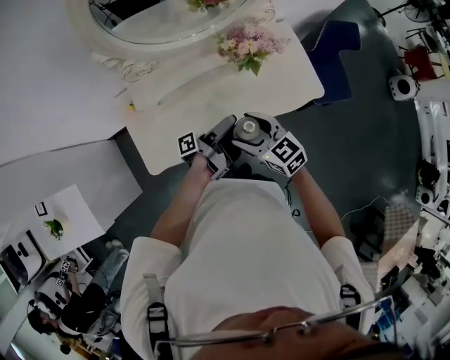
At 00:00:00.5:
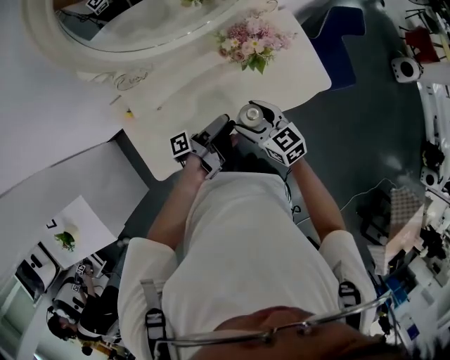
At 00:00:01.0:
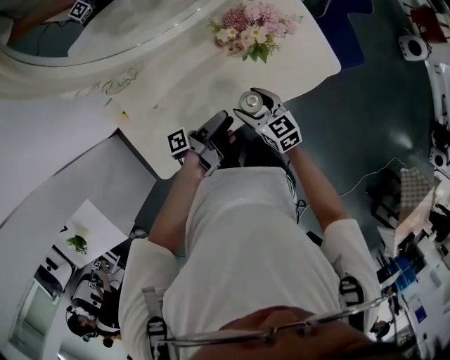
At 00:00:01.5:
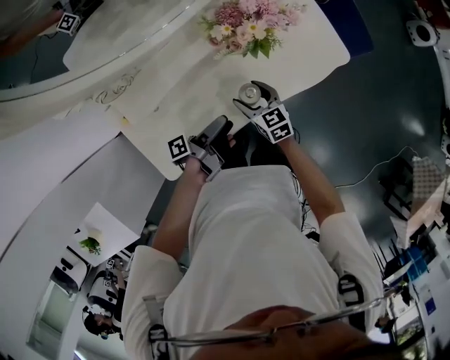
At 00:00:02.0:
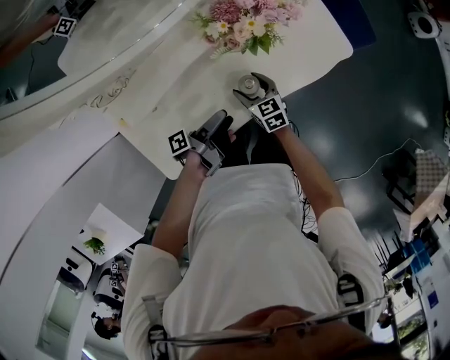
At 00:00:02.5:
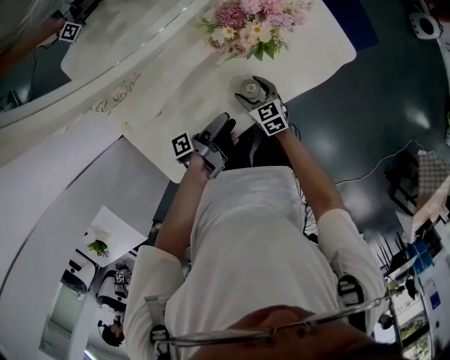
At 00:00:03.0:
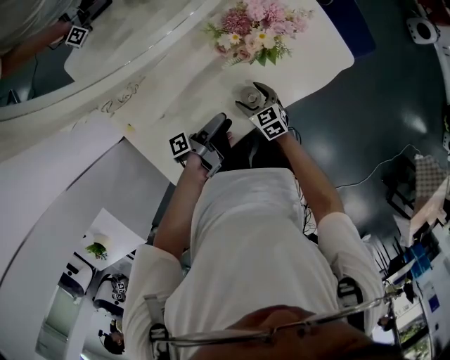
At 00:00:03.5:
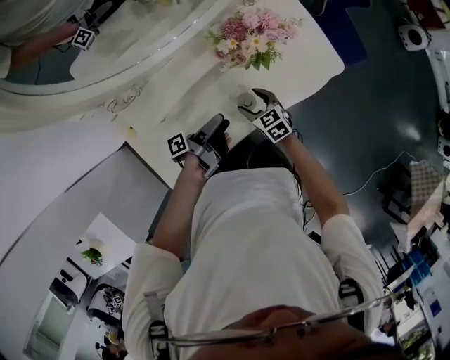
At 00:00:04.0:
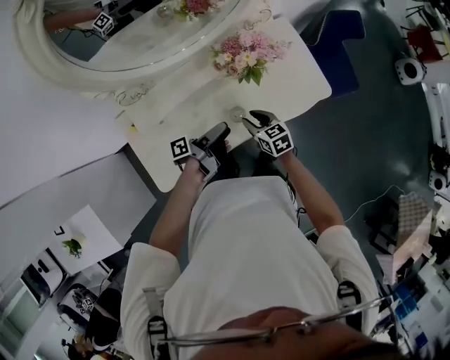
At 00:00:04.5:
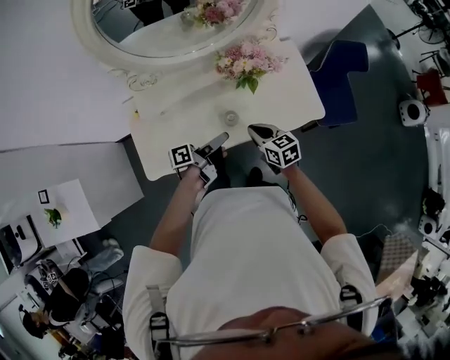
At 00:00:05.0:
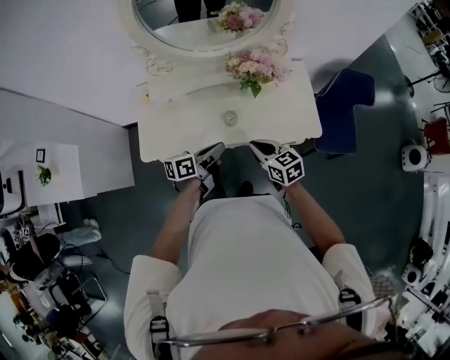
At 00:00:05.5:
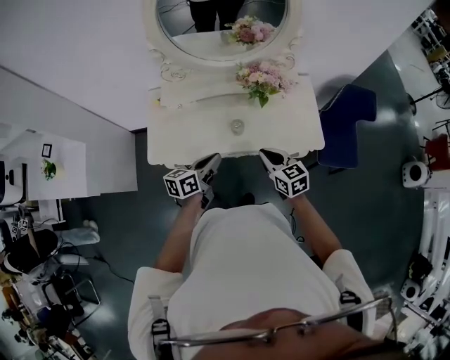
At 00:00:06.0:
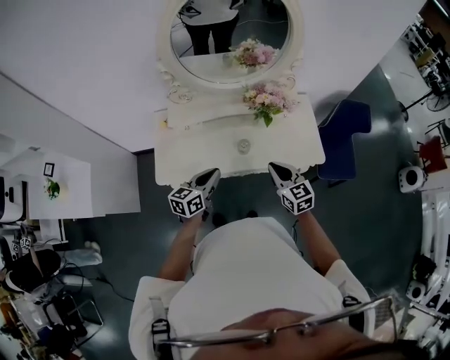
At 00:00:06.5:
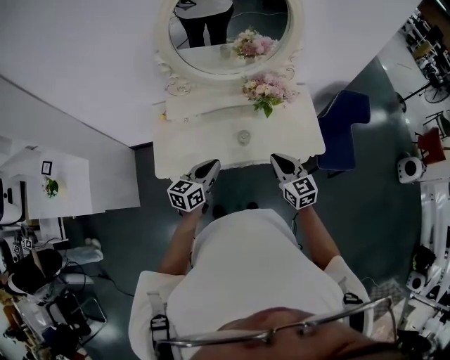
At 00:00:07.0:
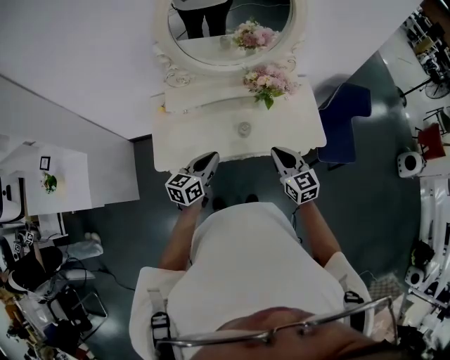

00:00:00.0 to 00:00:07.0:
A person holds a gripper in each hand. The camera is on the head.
00:00:00.0 to 00:00:02.0: The right gripper moves downward, about 30 cm, and turns by some 30 degrees.
00:00:03.5 to 00:00:05.0: The right gripper is displaced upward by about 20 cm, turns by about 30 degrees, and closes up.
00:00:05.0 to 00:00:07.0: The right gripper moves upward, about 5 cm, and swivels roughly 20 degrees.

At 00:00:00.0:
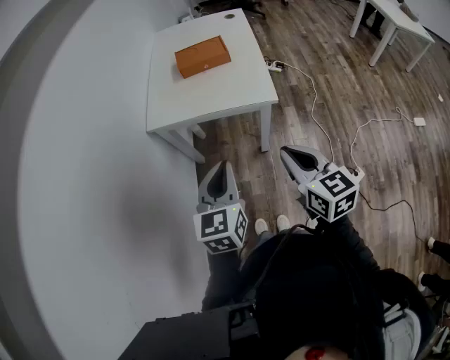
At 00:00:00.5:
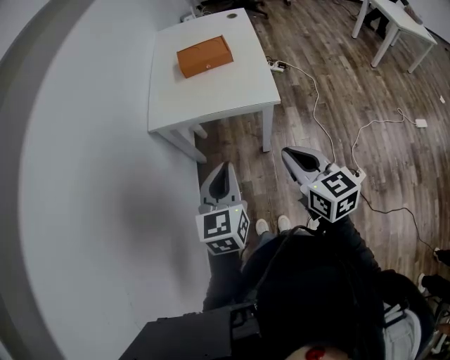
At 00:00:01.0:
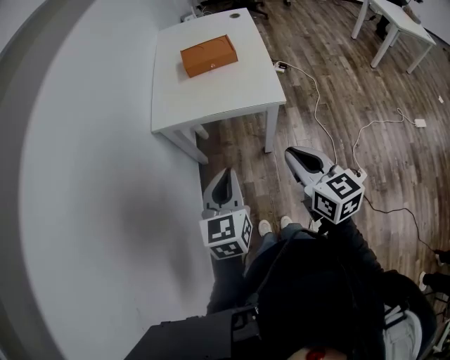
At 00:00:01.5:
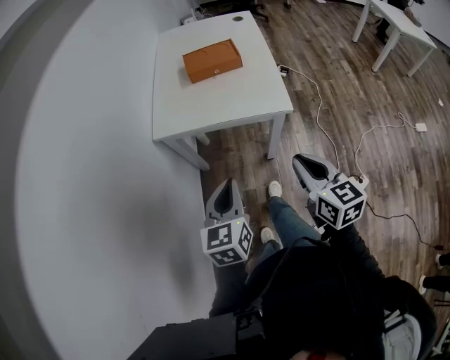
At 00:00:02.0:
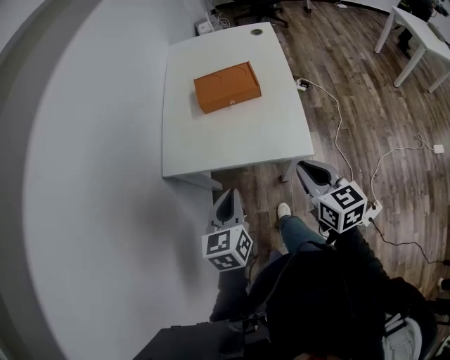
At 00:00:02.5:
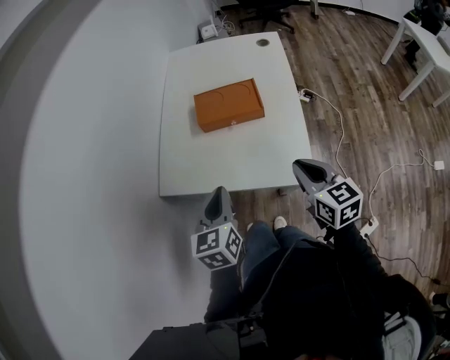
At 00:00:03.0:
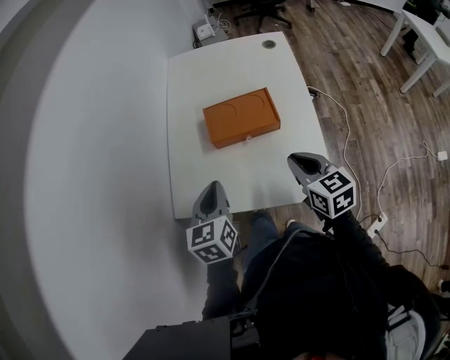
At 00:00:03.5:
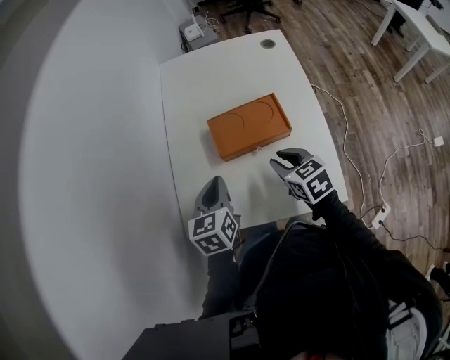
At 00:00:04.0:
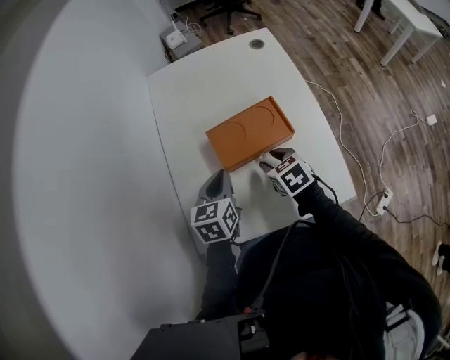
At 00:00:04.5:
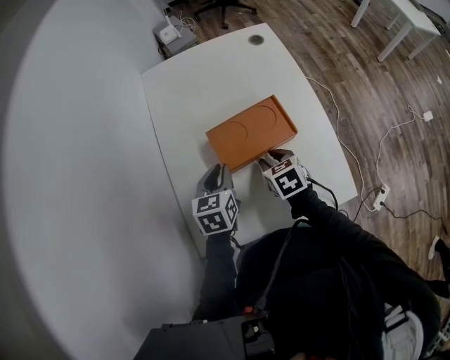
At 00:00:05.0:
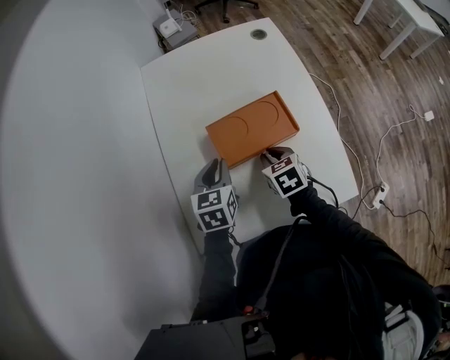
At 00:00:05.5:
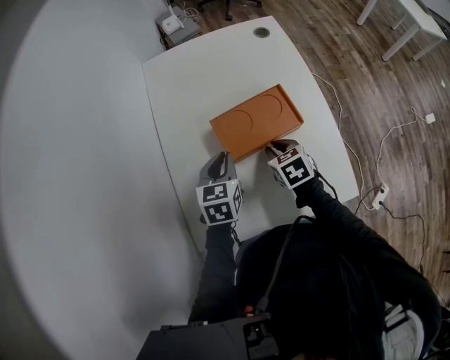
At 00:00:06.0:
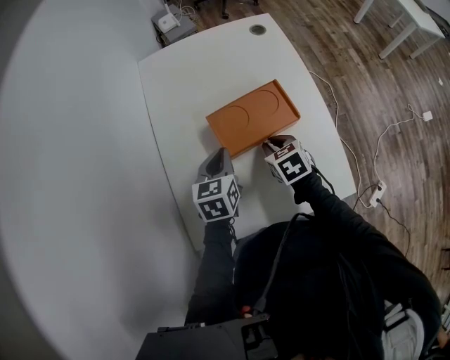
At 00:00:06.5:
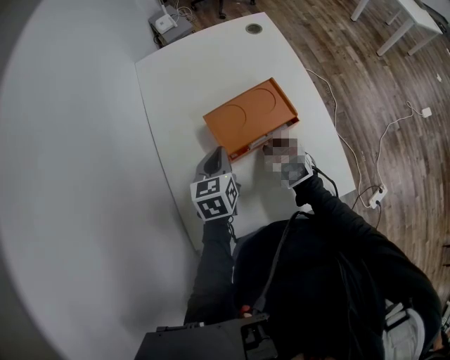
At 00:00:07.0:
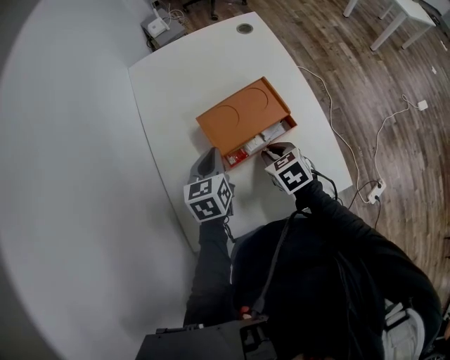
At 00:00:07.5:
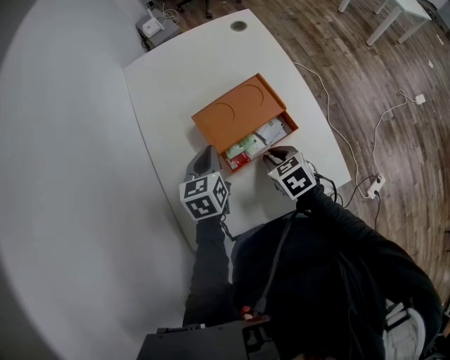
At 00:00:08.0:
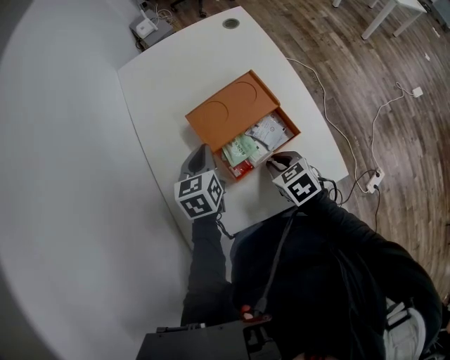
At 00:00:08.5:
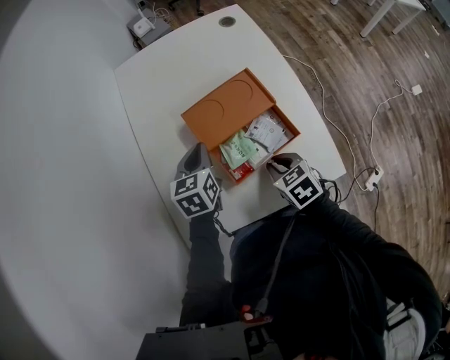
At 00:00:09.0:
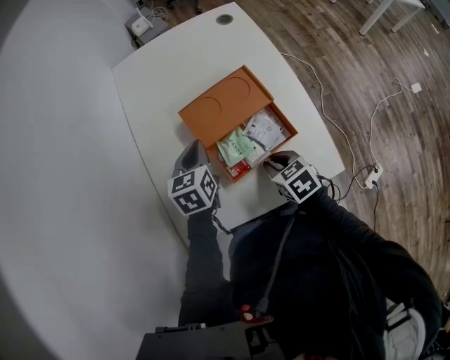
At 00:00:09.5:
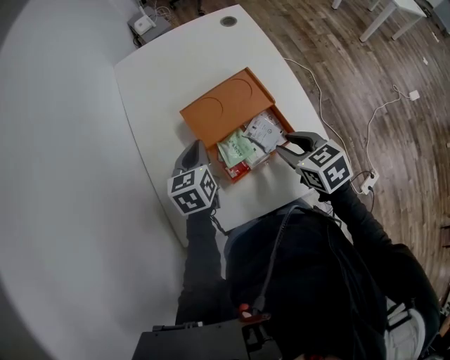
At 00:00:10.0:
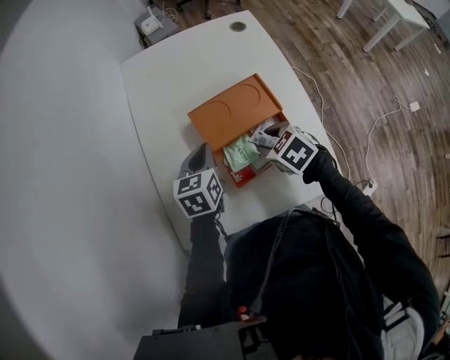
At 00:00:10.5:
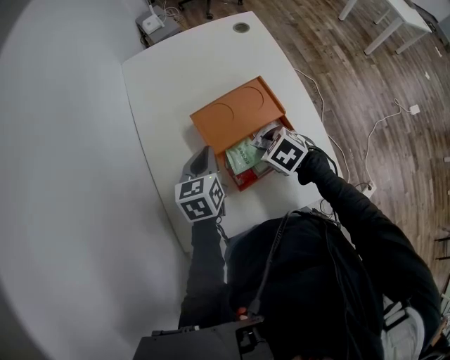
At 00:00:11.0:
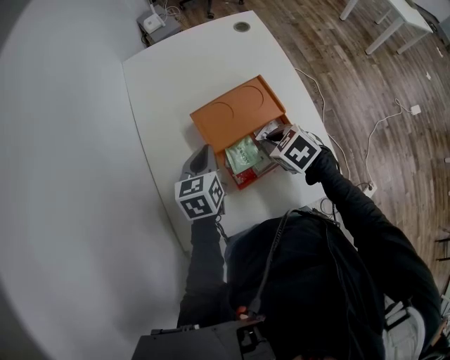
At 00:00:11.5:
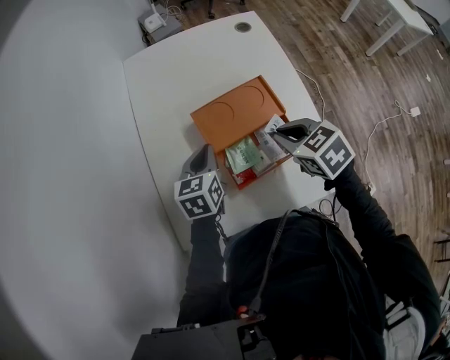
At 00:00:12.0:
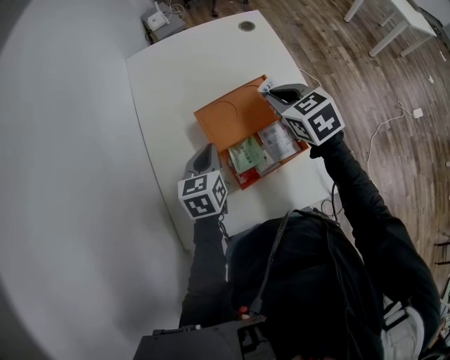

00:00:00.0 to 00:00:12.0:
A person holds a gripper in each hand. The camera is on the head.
00:00:00.0 to 00:00:02.0: Both grippers move forward, approximately 20 cm.
00:00:02.0 to 00:00:04.0: The right gripper travels forward and downward by roughly 40 cm, changes its angle by about 30 degrees, and opens, while the left gripper shifts some 40 cm forward.
00:00:04.0 to 00:00:06.0: The left gripper moves approximately 5 cm.
00:00:06.0 to 00:00:08.0: The right gripper heads backward, covering roughly 10 cm.
00:00:08.0 to 00:00:10.0: The right gripper is displaced forward by approximately 5 cm, goes upward and returns, about 10 cm each way, and opens.
00:00:10.0 to 00:00:12.0: The right gripper moves upward and forward, about 15 cm, swivels some 20 degrees, and closes its fingers.

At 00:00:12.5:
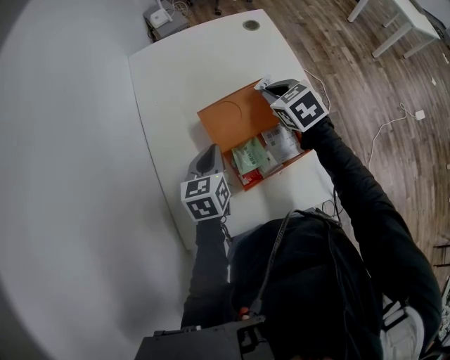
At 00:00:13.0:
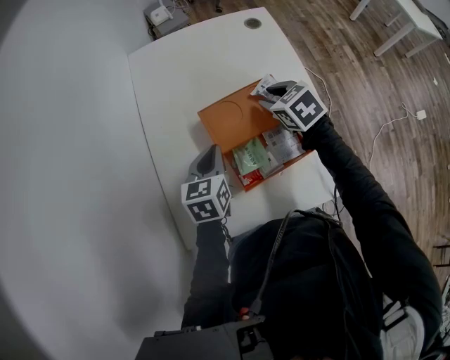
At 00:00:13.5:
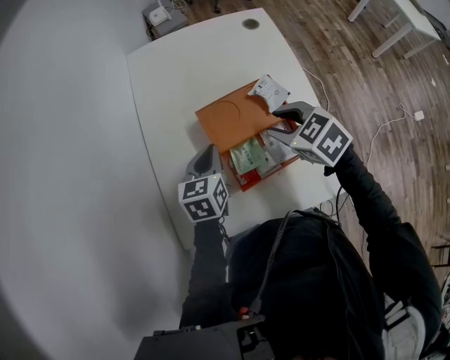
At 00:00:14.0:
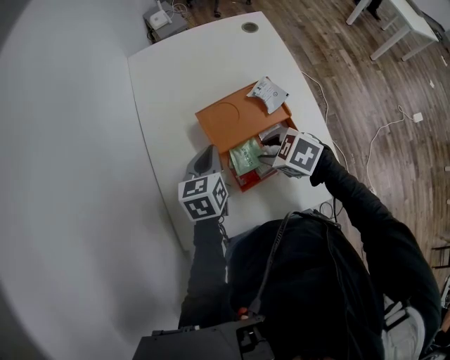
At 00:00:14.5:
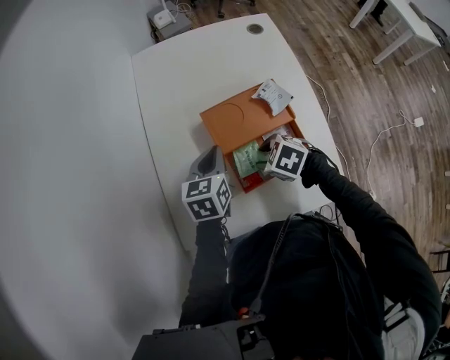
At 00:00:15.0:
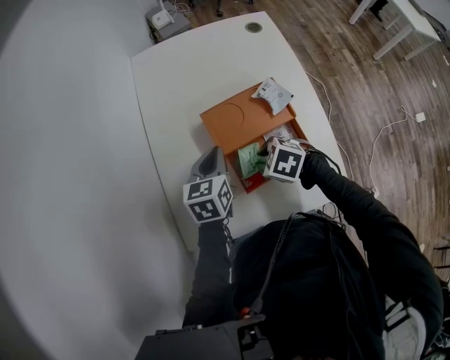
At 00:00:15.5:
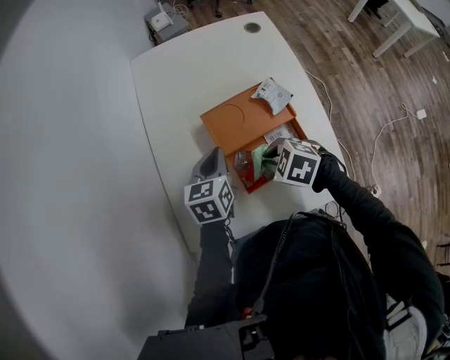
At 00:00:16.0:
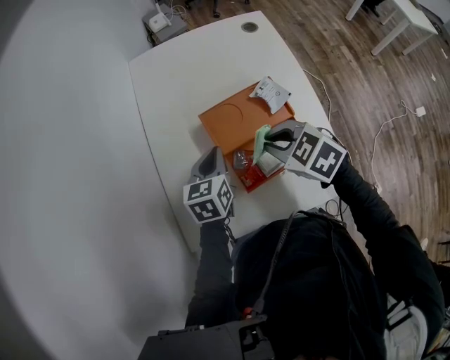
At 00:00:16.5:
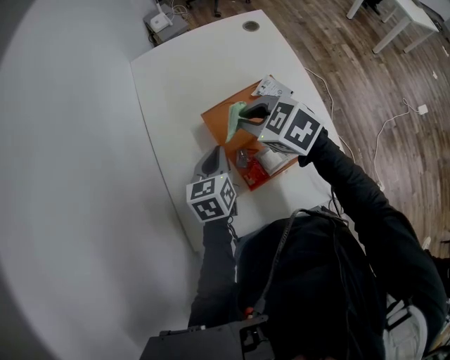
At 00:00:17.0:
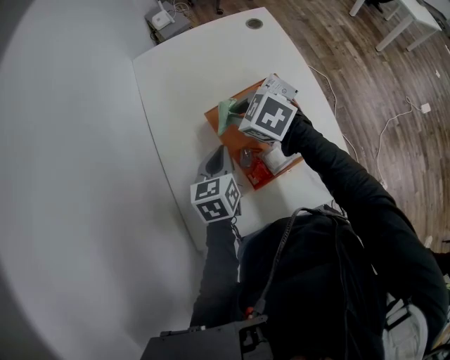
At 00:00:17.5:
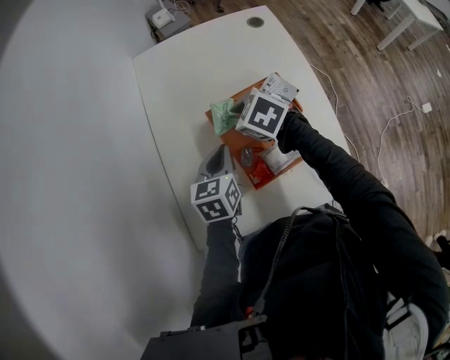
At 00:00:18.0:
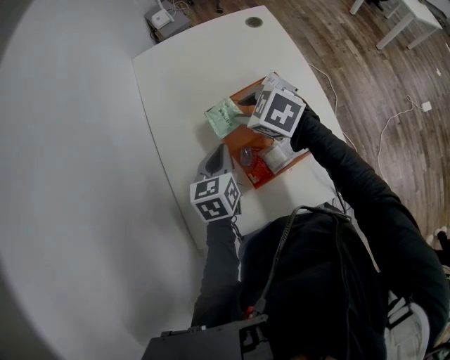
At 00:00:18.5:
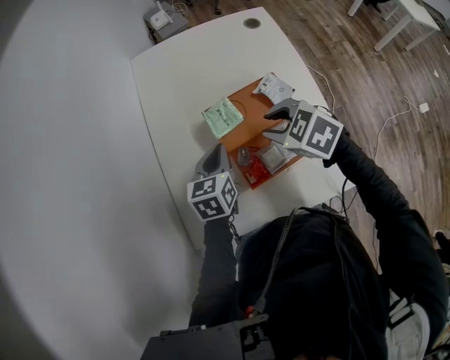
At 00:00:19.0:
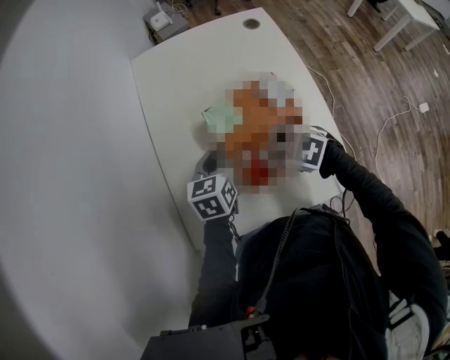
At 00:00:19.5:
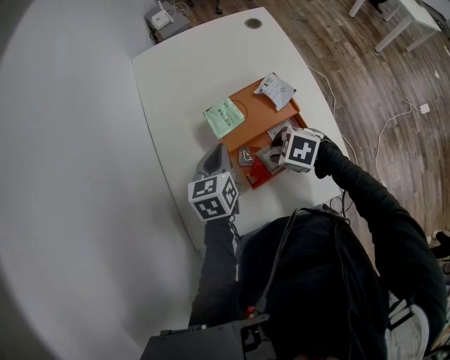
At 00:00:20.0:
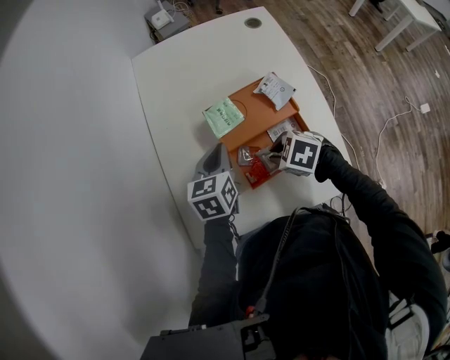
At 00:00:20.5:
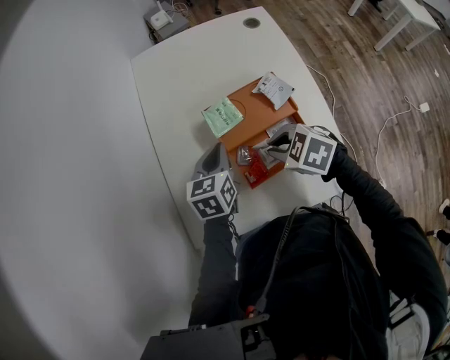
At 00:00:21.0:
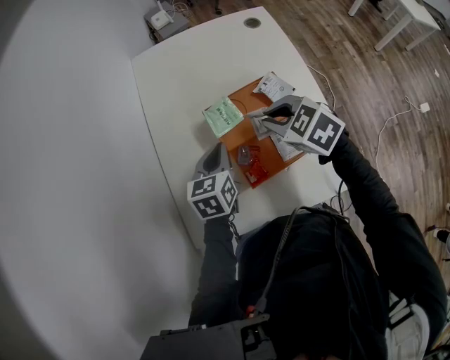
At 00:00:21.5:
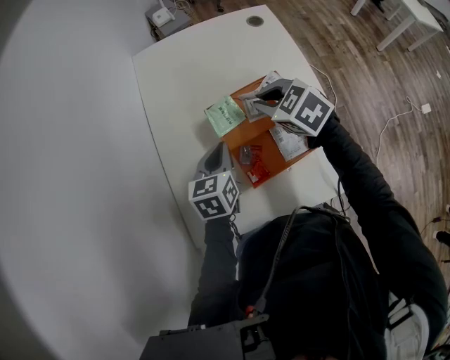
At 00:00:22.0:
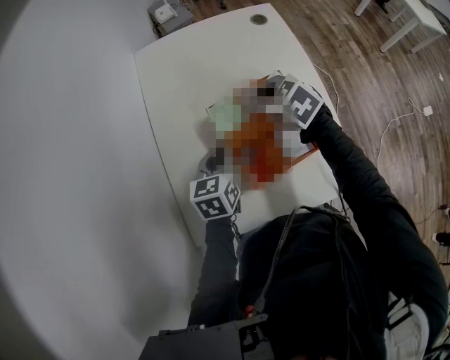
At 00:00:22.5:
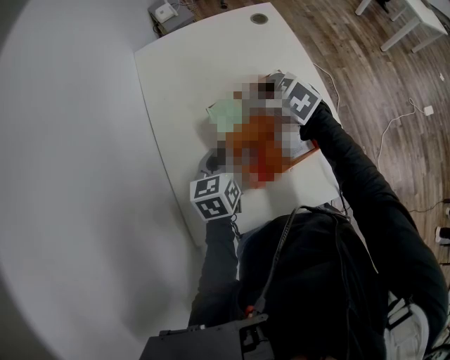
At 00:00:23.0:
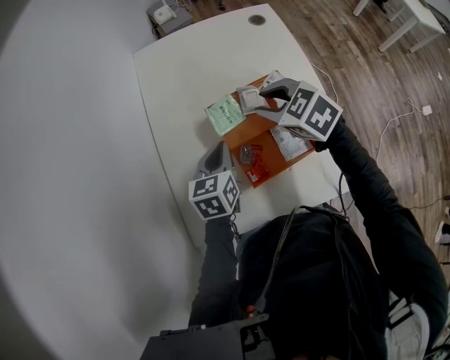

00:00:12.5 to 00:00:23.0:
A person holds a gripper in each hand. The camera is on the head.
00:00:12.5 to 00:00:14.5: The right gripper moves roughly 20 cm, swivels about 40 degrees, and opens.
00:00:14.5 to 00:00:16.5: The right gripper shifts approximately 15 cm upward and forward, rotates approximately 20 degrees, and closes up.
00:00:16.5 to 00:00:19.0: The right gripper travels downward and backward by roughly 15 cm, rotates some 20 degrees, and opens its fingers.
00:00:19.0 to 00:00:21.0: The right gripper shifts approximately 10 cm upward and forward, and closes up.
